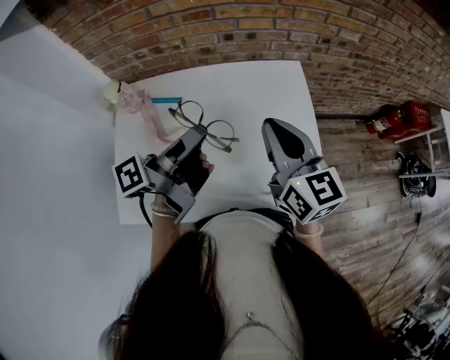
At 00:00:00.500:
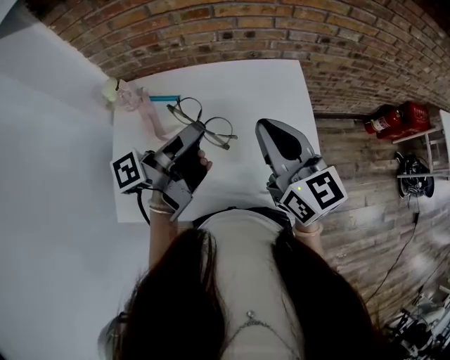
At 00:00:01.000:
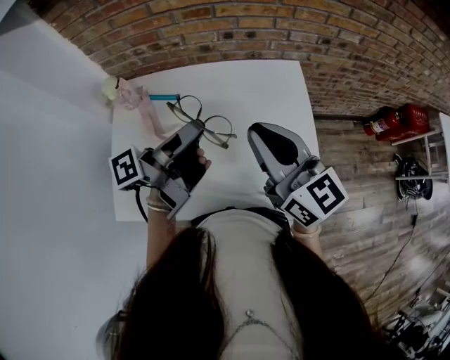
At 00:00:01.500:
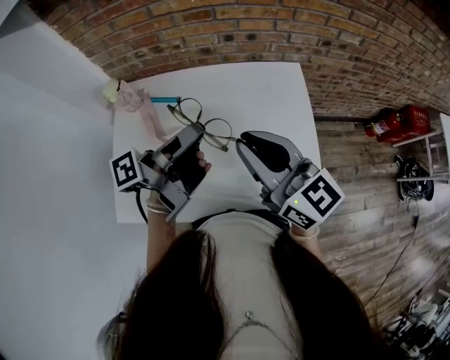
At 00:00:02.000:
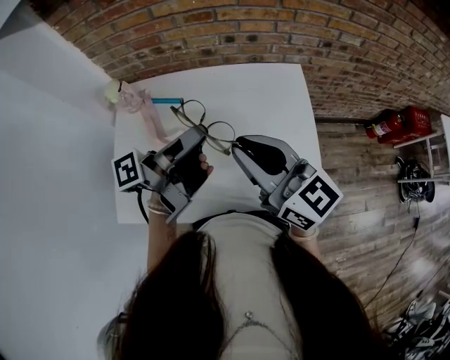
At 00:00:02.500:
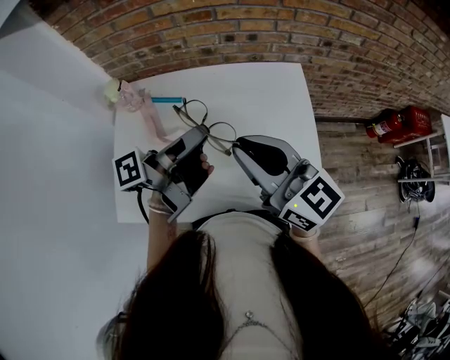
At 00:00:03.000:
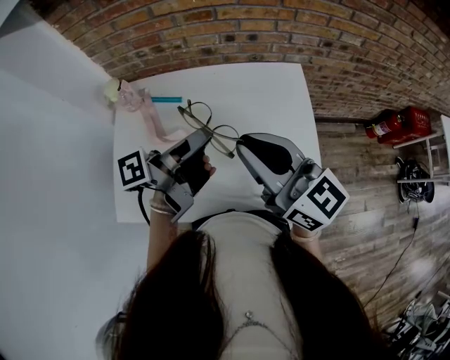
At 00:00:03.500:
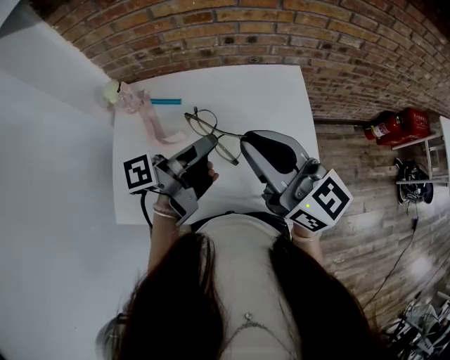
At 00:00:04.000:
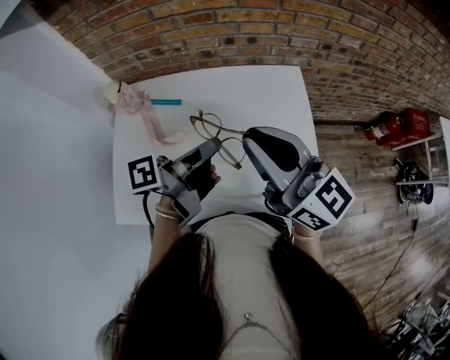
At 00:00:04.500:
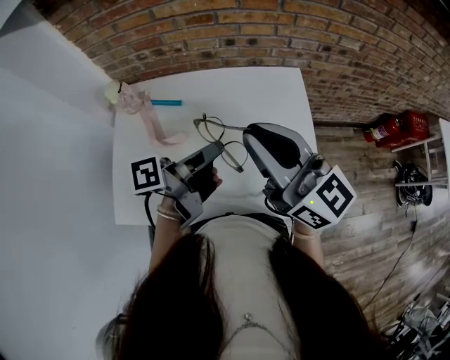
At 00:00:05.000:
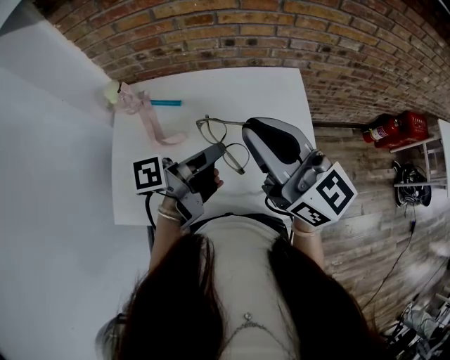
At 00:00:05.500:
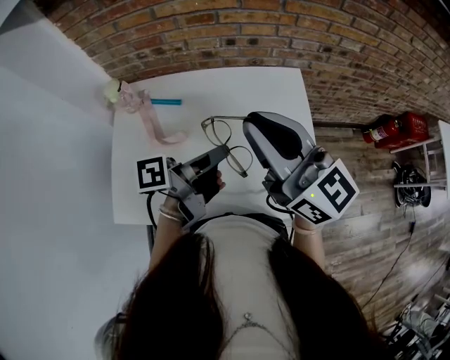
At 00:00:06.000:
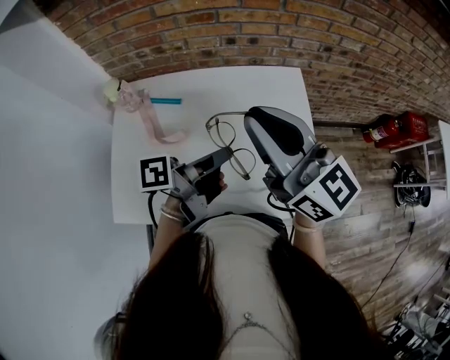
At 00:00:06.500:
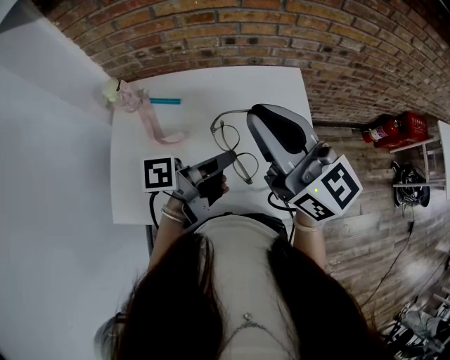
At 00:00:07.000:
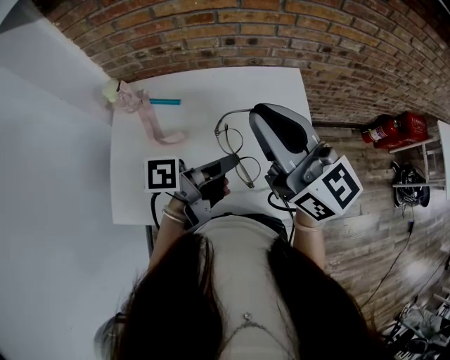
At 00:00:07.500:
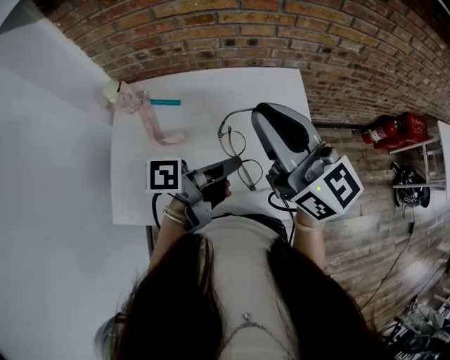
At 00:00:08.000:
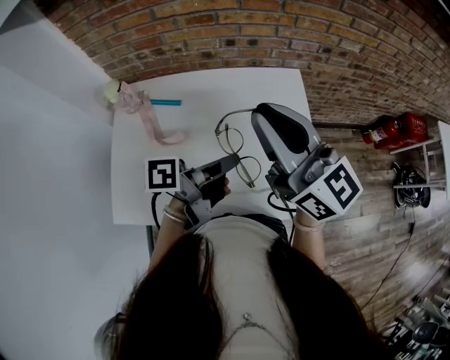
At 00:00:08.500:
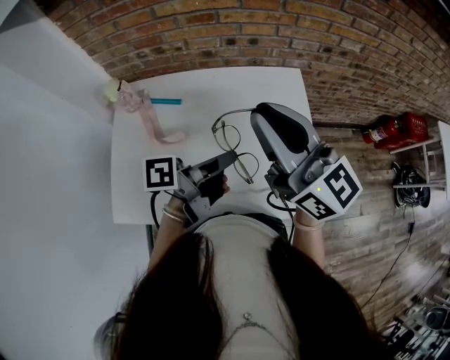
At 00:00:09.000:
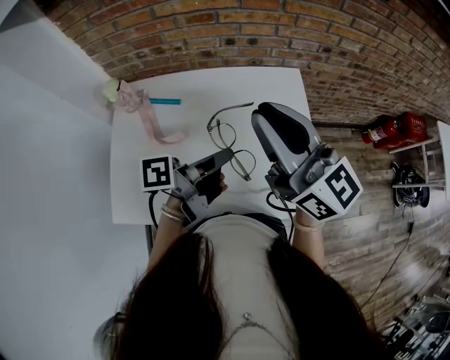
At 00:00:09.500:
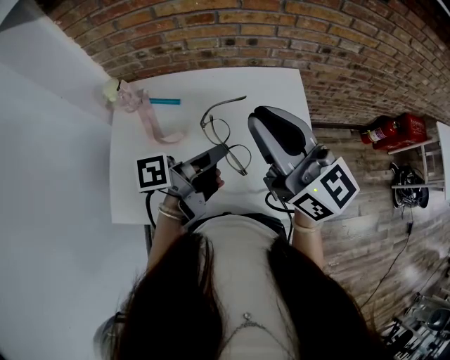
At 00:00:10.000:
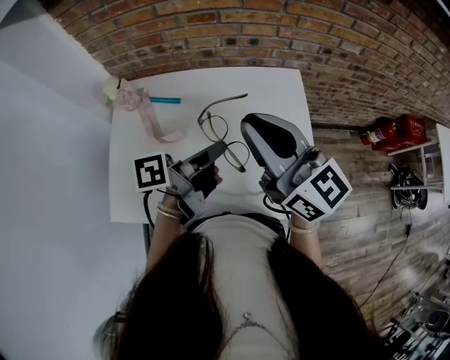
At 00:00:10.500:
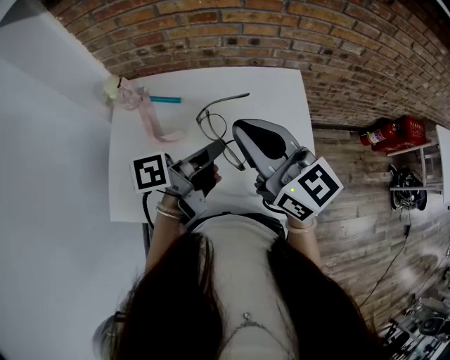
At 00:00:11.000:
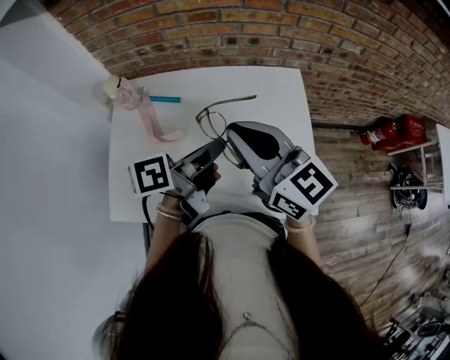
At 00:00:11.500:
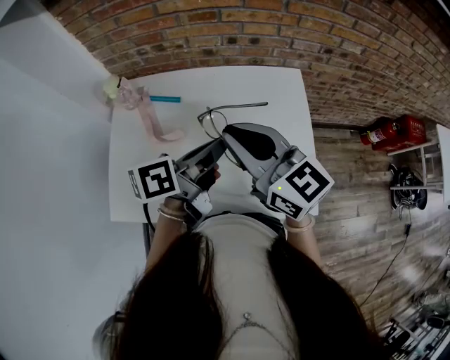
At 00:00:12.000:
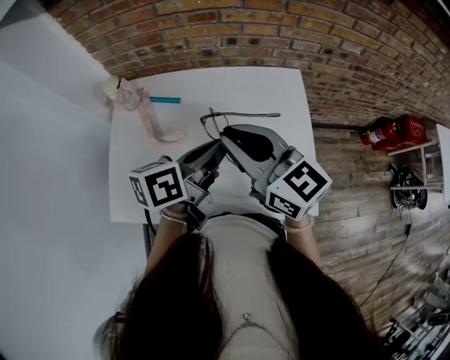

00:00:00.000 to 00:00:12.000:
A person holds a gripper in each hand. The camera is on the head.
00:00:00.000 to 00:00:02.000: The right gripper moves approximately 10 cm, and changes its angle by some 20 degrees.
00:00:10.000 to 00:00:12.000: The right gripper shifts by some 5 cm.

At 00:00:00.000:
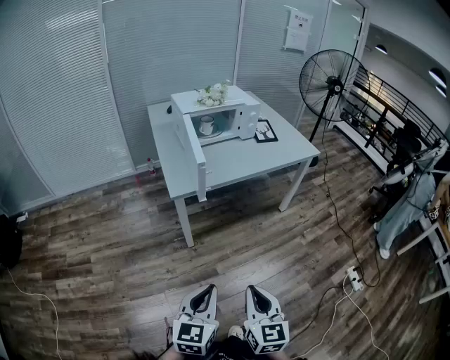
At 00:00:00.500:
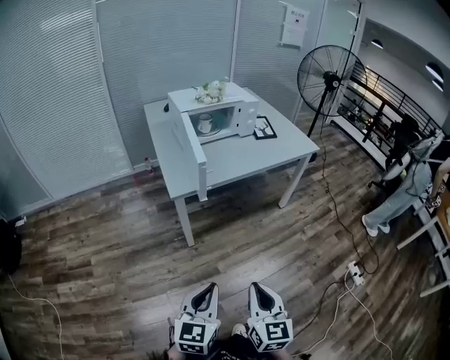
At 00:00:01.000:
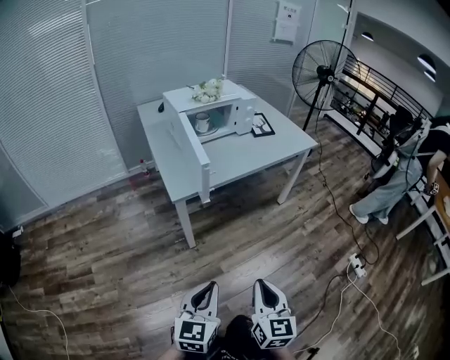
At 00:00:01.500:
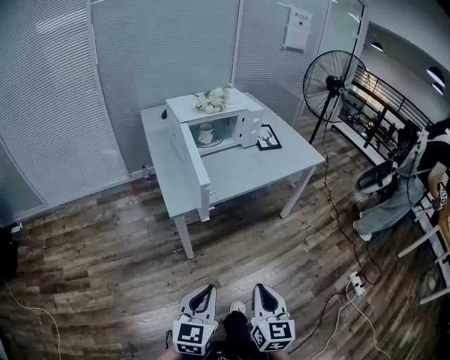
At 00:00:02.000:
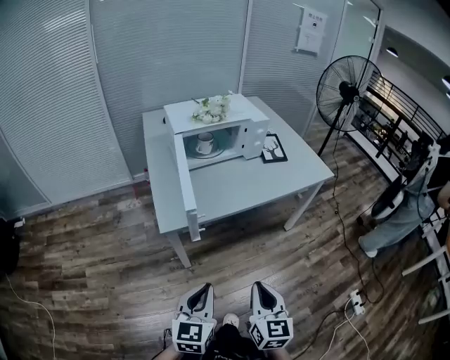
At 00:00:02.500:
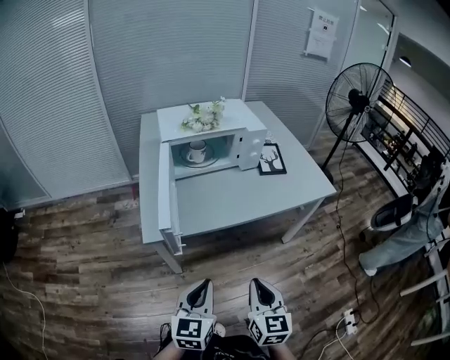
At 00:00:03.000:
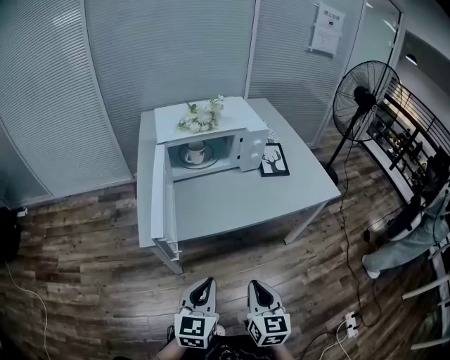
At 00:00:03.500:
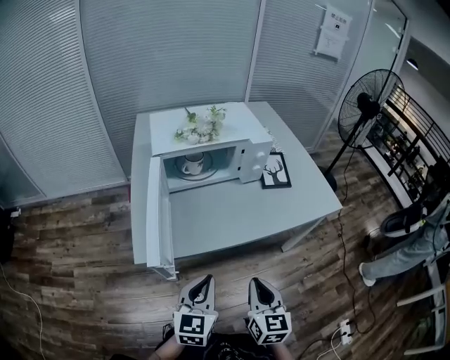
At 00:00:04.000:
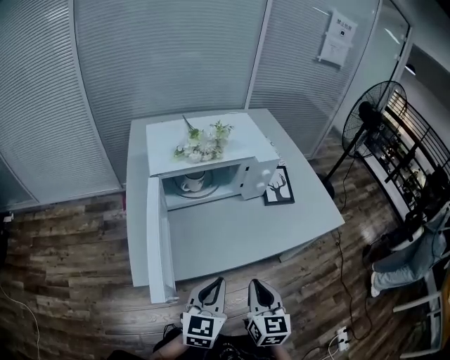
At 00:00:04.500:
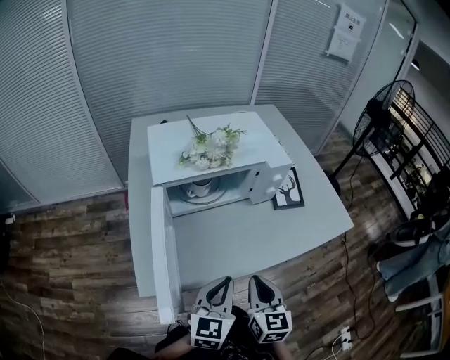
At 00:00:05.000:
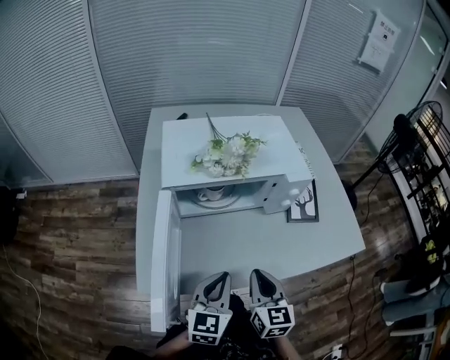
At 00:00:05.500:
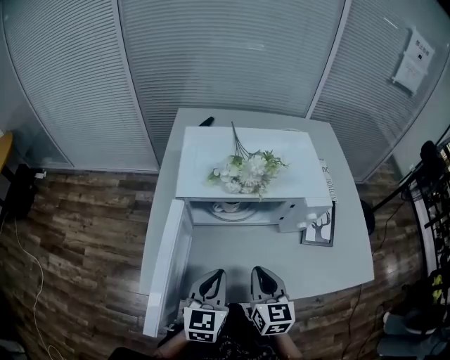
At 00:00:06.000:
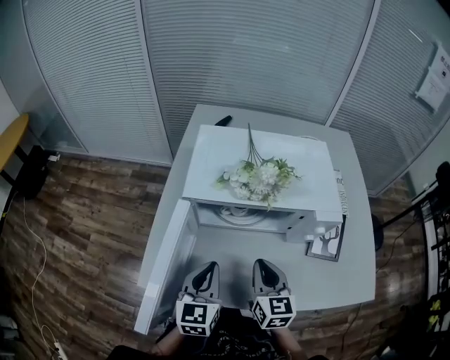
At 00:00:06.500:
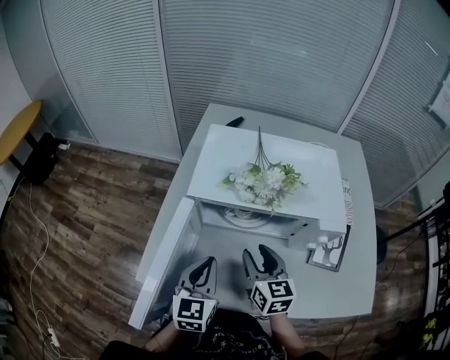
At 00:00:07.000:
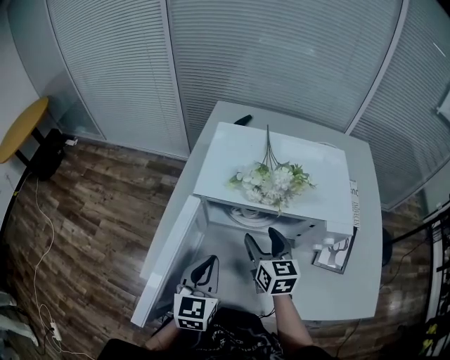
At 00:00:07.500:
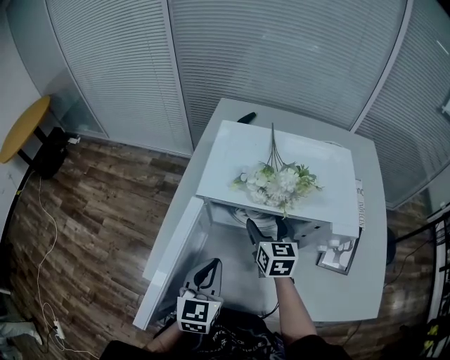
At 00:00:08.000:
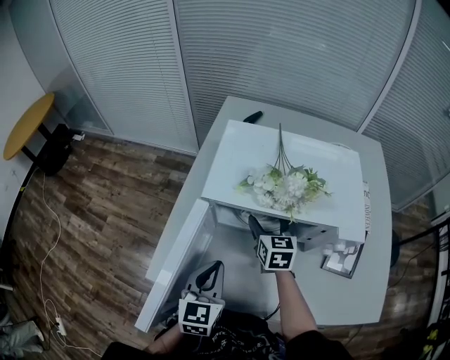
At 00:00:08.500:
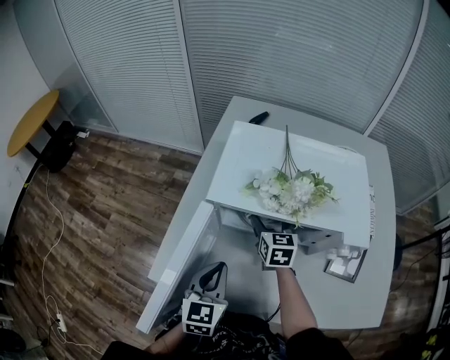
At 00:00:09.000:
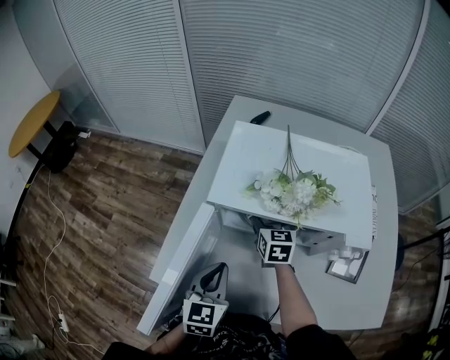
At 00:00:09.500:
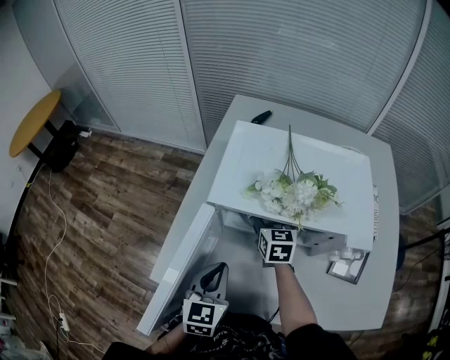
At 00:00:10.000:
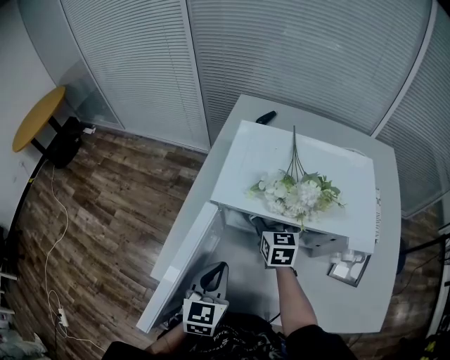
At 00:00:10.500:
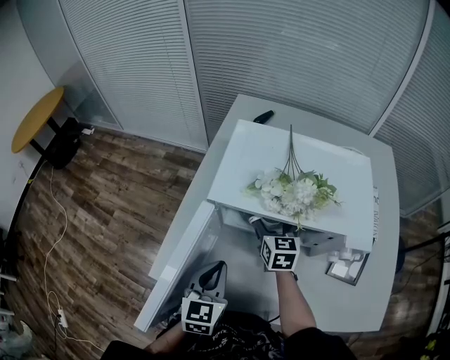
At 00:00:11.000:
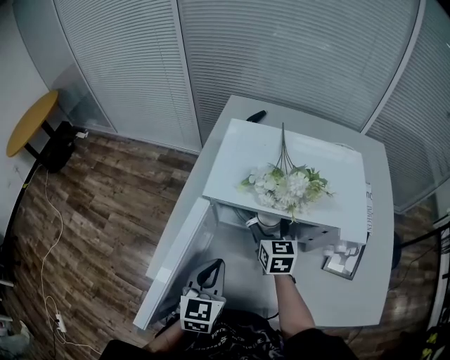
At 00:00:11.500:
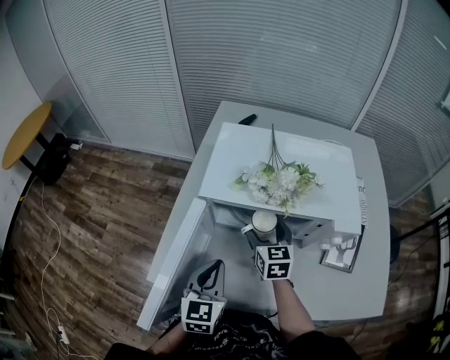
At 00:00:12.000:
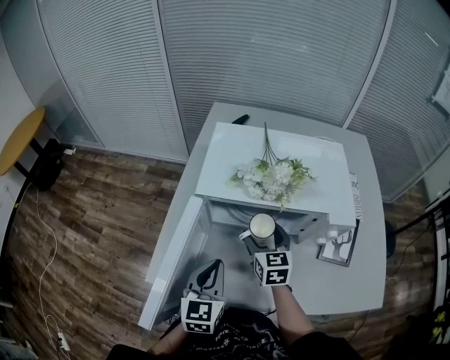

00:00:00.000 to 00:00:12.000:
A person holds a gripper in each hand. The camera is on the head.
00:00:00.000 to 00:00:02.000: The grippers both shift forward by about 20 cm.
00:00:02.000 to 00:00:04.000: Both grippers travel together forward, approximately 30 cm.
00:00:04.000 to 00:00:06.000: The right gripper moves roughly 25 cm, and turns by approximately 30 degrees; the left gripper moves roughly 20 cm, and turns by about 30 degrees.
00:00:06.000 to 00:00:08.000: The right gripper travels forward by about 20 cm, and opens.
00:00:08.000 to 00:00:10.000: The grippers stay close to where they were, moving slightly.
00:00:10.000 to 00:00:12.000: The right gripper travels backward by roughly 10 cm.

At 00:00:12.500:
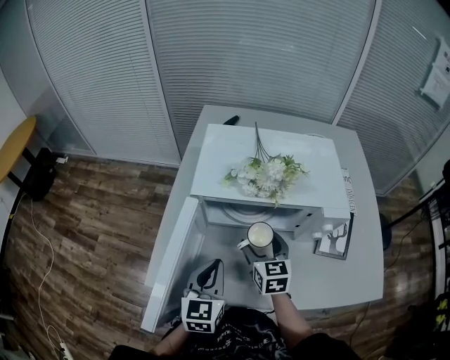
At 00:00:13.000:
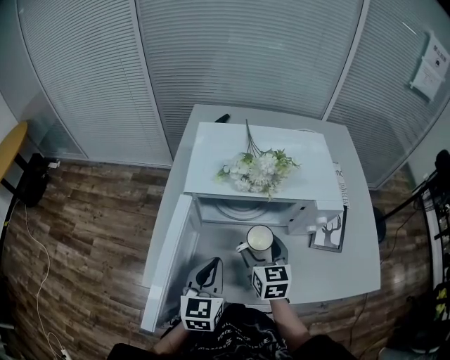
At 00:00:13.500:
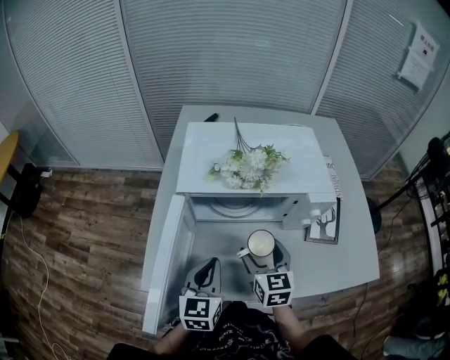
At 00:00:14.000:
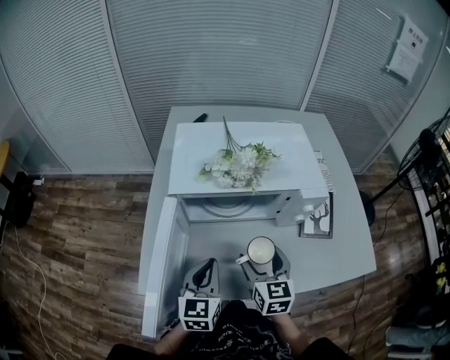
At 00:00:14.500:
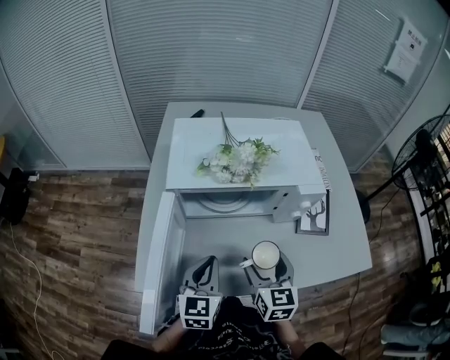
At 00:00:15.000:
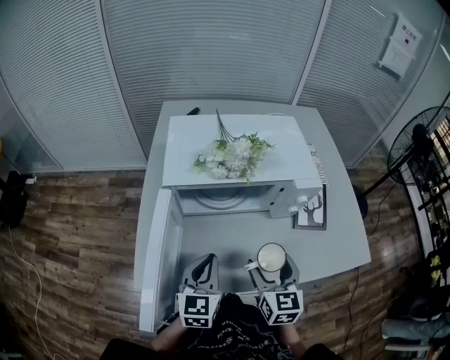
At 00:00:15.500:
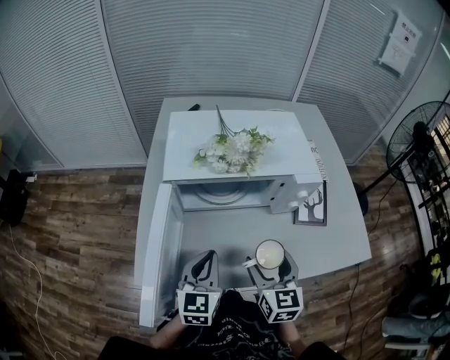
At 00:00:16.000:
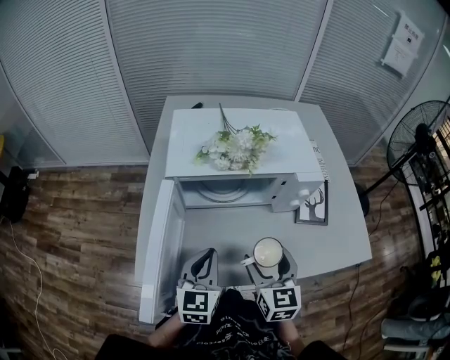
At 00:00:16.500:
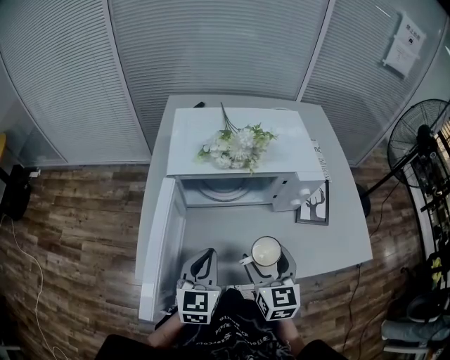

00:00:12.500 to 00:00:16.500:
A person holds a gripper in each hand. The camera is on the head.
00:00:12.500 to 00:00:14.500: The right gripper shifts some 10 cm backward and to the right.
00:00:14.500 to 00:00:16.500: The grippers stay close to where they were, moving slightly.
